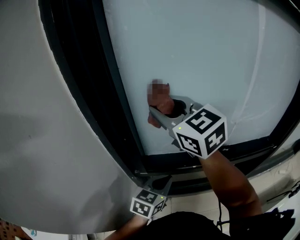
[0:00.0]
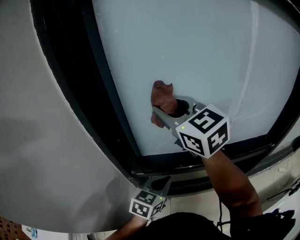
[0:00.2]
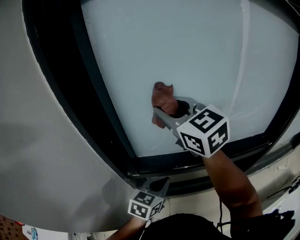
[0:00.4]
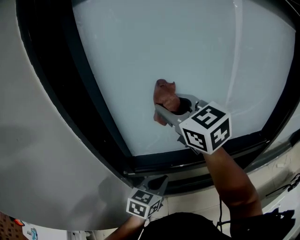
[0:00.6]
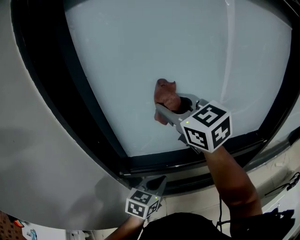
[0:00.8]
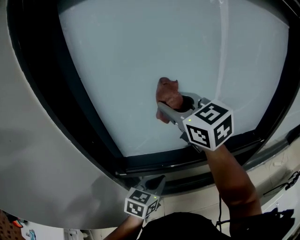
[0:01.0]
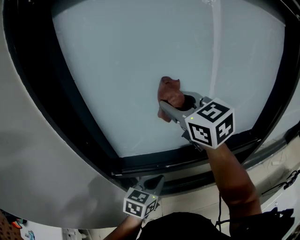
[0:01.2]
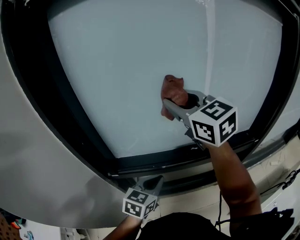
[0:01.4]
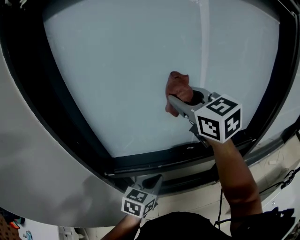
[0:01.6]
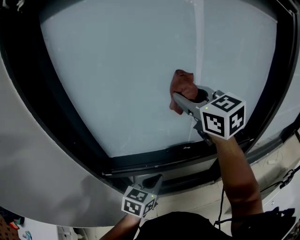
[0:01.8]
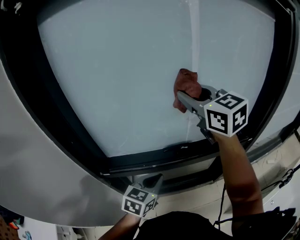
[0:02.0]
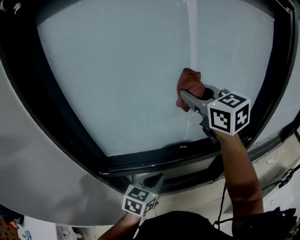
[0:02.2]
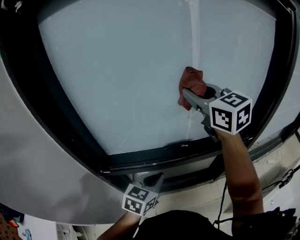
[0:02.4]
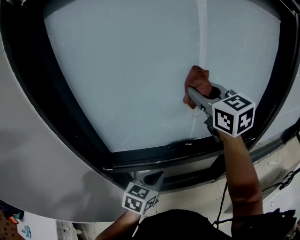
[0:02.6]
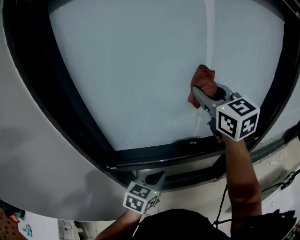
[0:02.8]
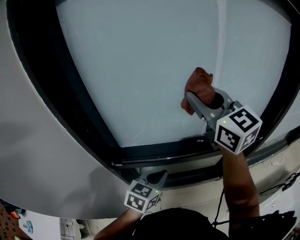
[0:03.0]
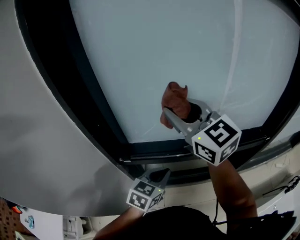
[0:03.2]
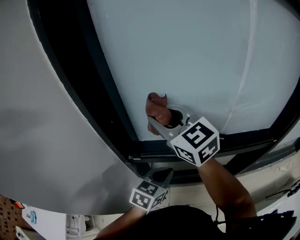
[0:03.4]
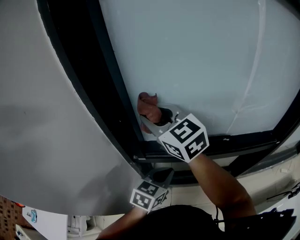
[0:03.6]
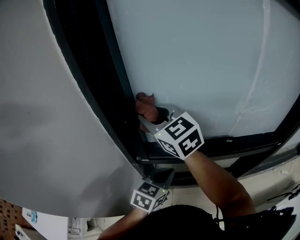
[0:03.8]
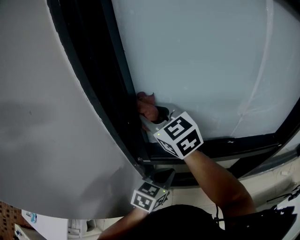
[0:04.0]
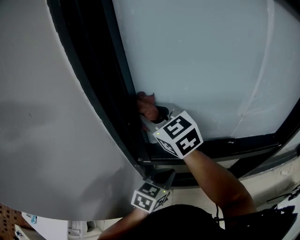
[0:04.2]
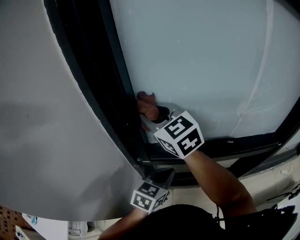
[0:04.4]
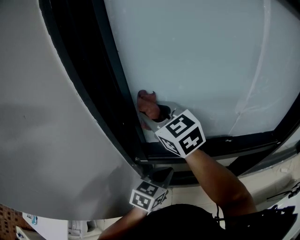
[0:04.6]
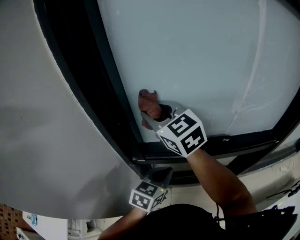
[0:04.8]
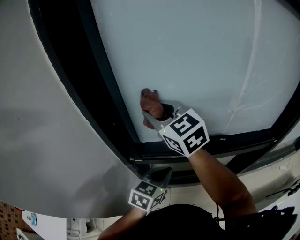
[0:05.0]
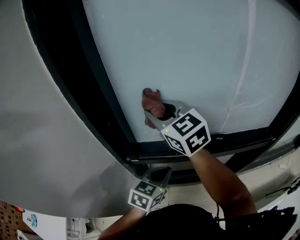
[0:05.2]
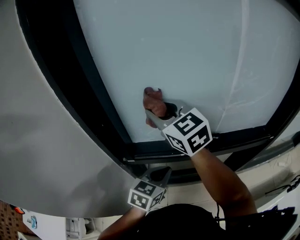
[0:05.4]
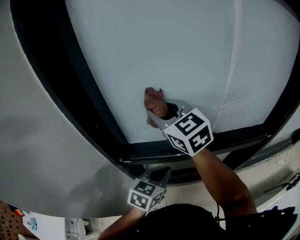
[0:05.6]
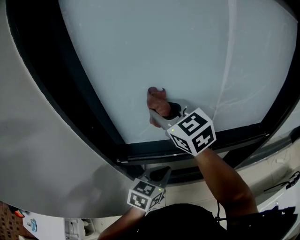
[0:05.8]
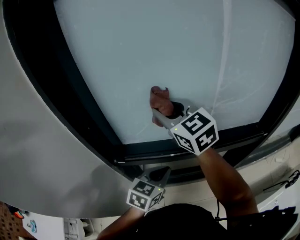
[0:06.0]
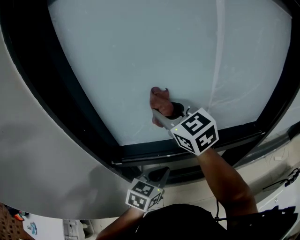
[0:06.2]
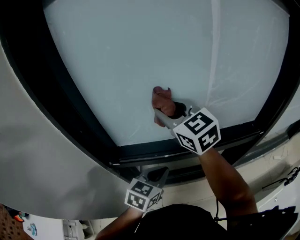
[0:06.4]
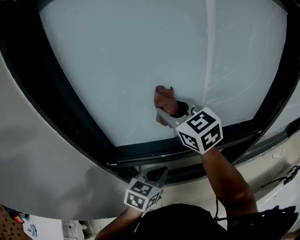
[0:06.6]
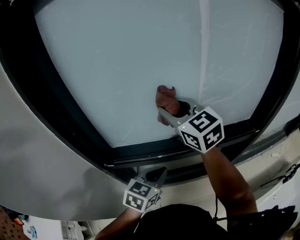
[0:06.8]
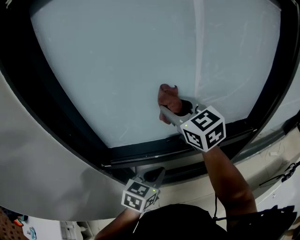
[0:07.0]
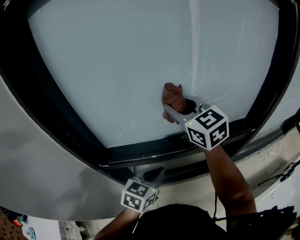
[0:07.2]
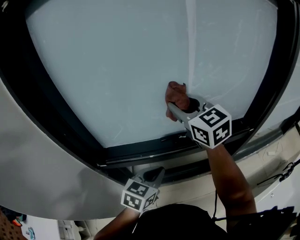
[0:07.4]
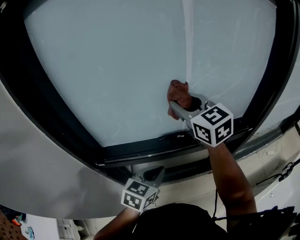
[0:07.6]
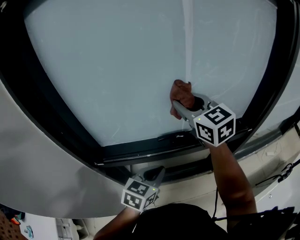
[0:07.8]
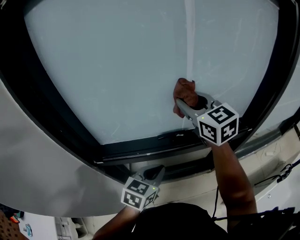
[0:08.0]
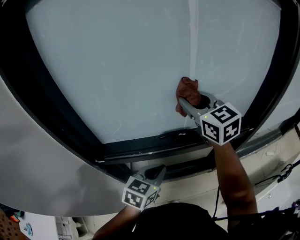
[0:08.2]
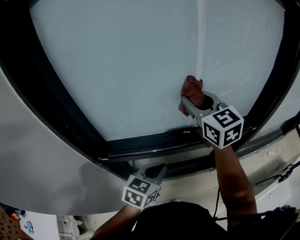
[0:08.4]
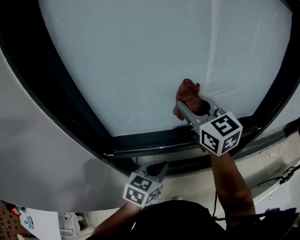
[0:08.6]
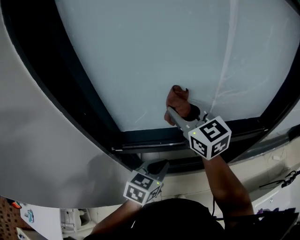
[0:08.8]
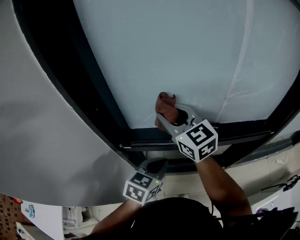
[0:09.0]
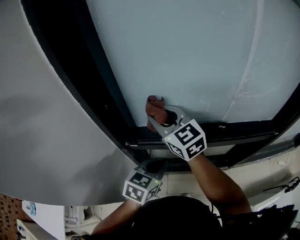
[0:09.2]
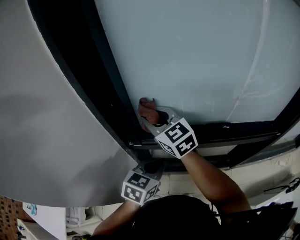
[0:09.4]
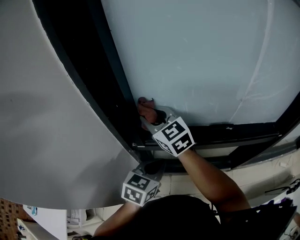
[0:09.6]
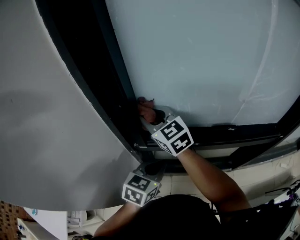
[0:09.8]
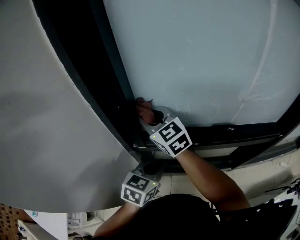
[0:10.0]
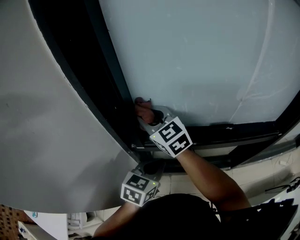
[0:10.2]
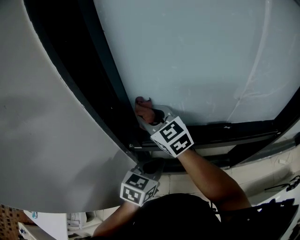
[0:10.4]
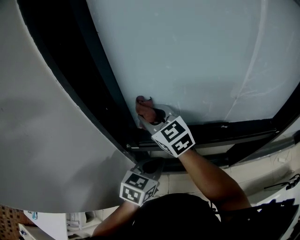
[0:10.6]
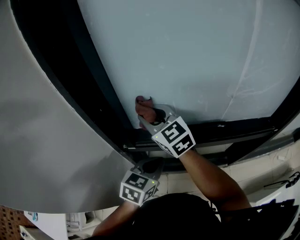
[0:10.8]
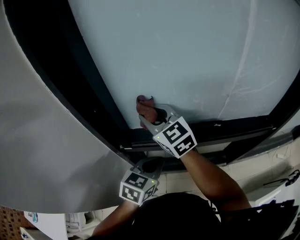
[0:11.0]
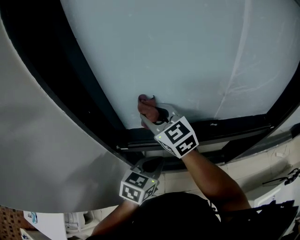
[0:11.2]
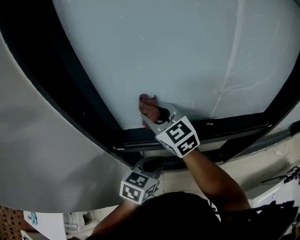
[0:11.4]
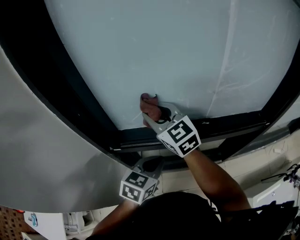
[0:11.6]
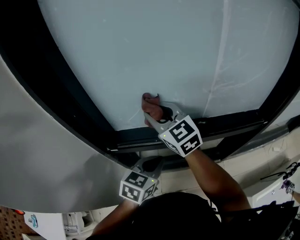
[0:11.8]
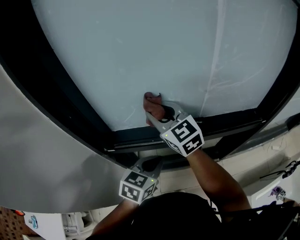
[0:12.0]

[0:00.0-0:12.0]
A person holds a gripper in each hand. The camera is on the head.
0:00.0 to 0:01.6: The right gripper shifts approximately 25 cm to the right. The left gripper moves to the right, roughly 10 cm.
0:03.0 to 0:04.4: The right gripper moves to the left, some 30 cm, and turns by some 20 degrees. Meanwhile the left gripper goes roughly 10 cm to the left.
0:04.4 to 0:06.0: The right gripper goes some 15 cm to the right. The left gripper goes roughly 10 cm to the right.
0:06.0 to 0:07.6: The right gripper goes about 15 cm to the right, while the left gripper heads to the right, covering some 5 cm.
0:07.6 to 0:09.0: The left gripper travels to the left by approximately 10 cm. Meanwhile the right gripper goes approximately 20 cm to the left.
0:09.0 to 0:10.4: The right gripper moves to the left, about 10 cm. The left gripper heads to the left, covering approximately 5 cm.
0:10.4 to 0:12.0: The two grippers go roughly 15 cm to the right.

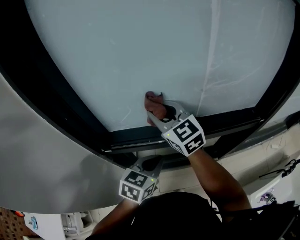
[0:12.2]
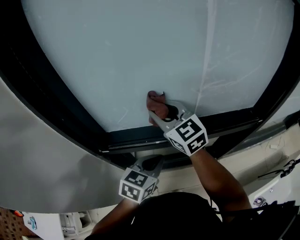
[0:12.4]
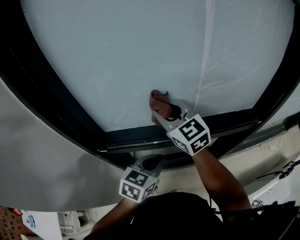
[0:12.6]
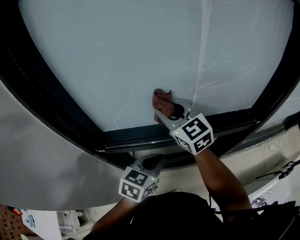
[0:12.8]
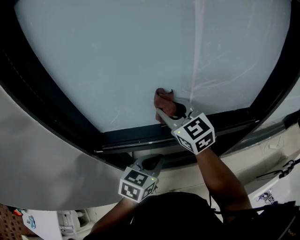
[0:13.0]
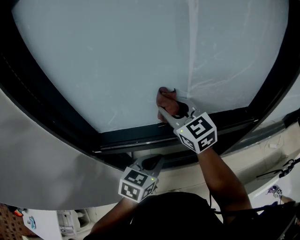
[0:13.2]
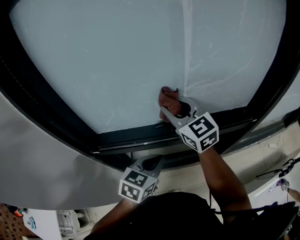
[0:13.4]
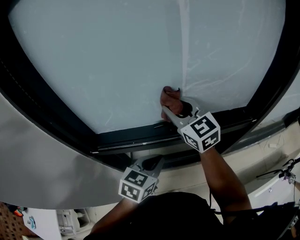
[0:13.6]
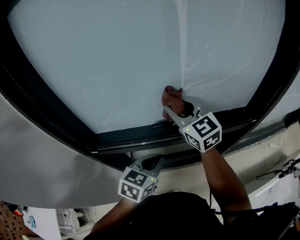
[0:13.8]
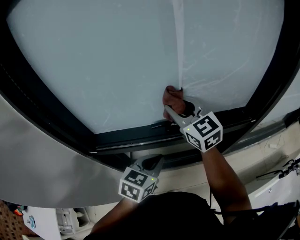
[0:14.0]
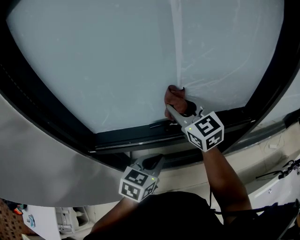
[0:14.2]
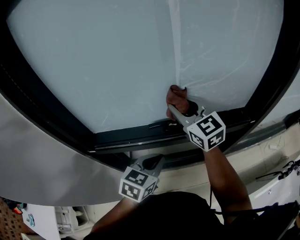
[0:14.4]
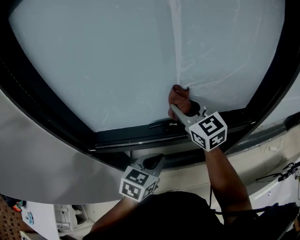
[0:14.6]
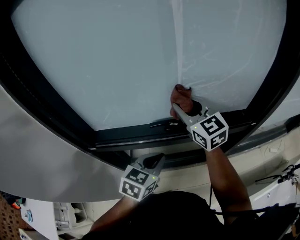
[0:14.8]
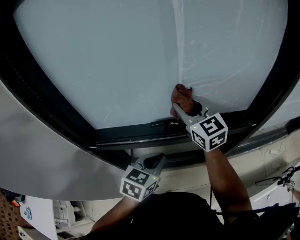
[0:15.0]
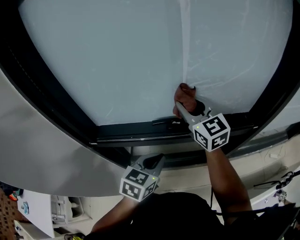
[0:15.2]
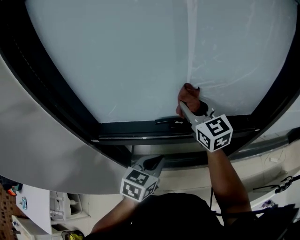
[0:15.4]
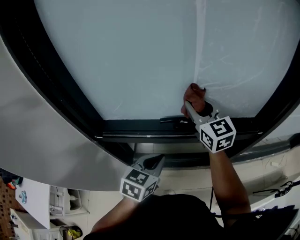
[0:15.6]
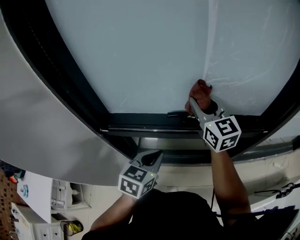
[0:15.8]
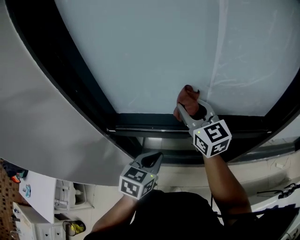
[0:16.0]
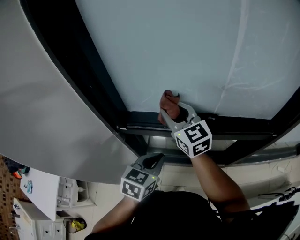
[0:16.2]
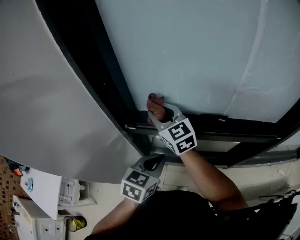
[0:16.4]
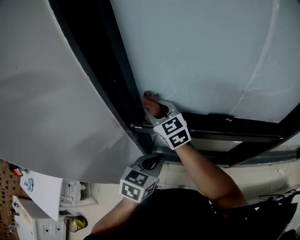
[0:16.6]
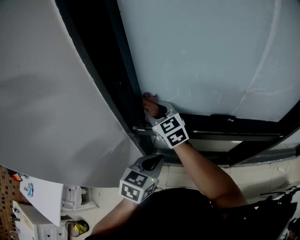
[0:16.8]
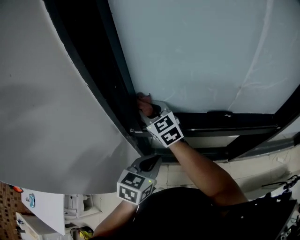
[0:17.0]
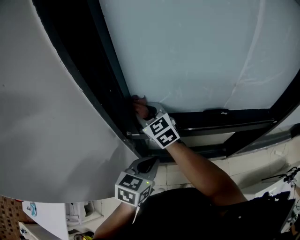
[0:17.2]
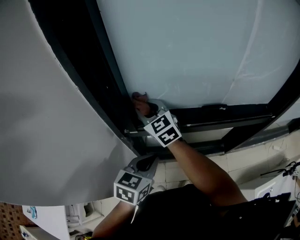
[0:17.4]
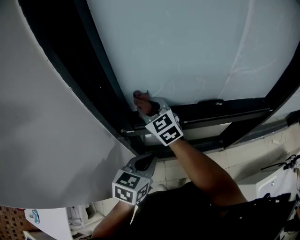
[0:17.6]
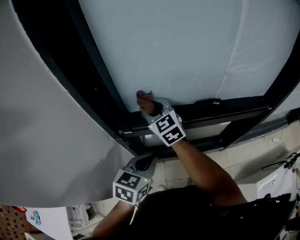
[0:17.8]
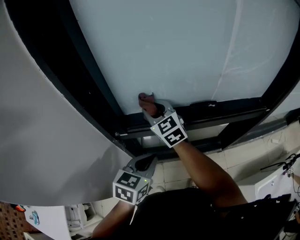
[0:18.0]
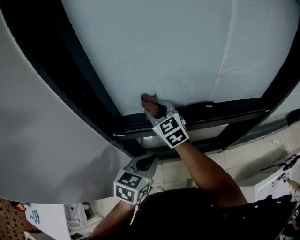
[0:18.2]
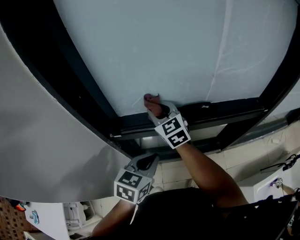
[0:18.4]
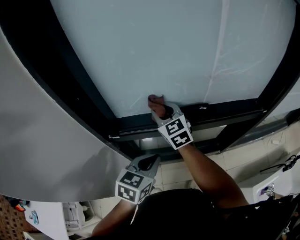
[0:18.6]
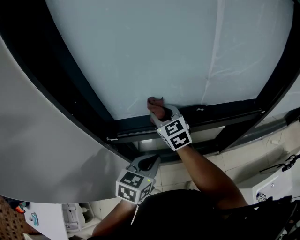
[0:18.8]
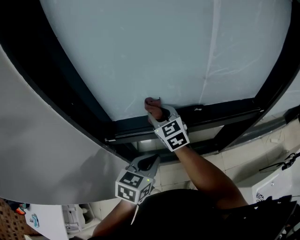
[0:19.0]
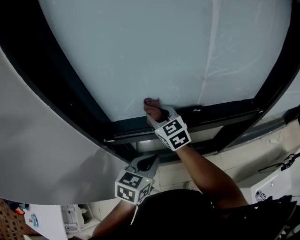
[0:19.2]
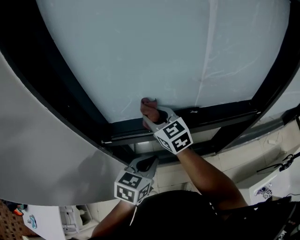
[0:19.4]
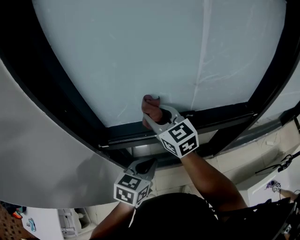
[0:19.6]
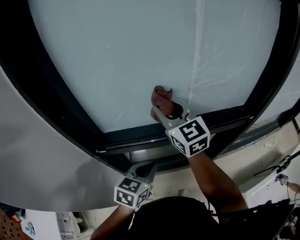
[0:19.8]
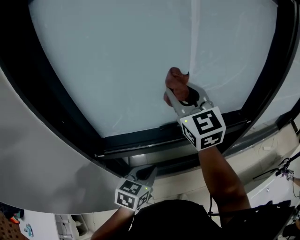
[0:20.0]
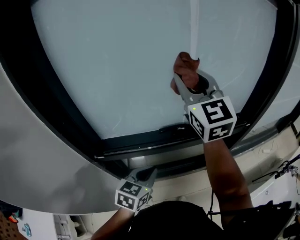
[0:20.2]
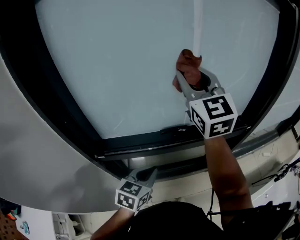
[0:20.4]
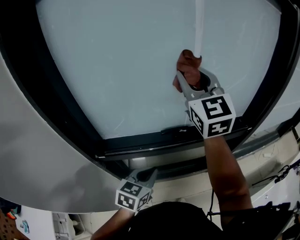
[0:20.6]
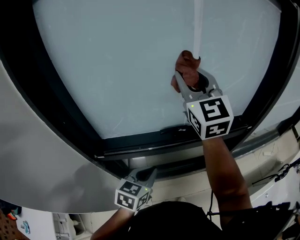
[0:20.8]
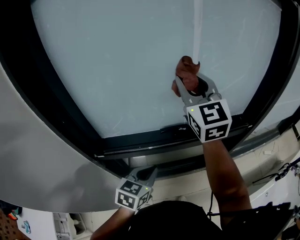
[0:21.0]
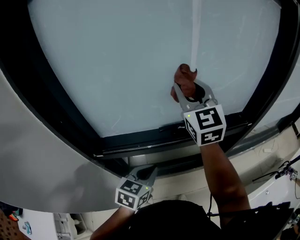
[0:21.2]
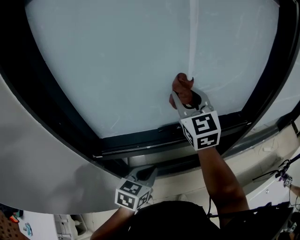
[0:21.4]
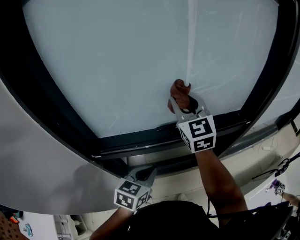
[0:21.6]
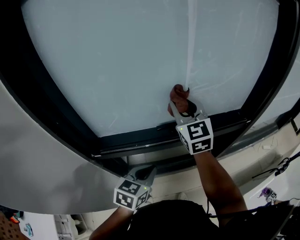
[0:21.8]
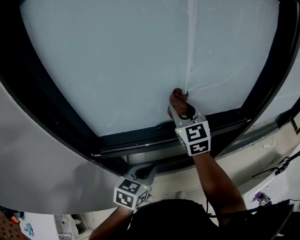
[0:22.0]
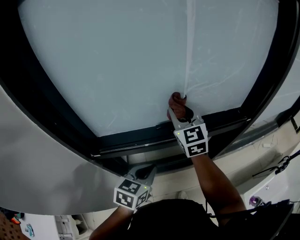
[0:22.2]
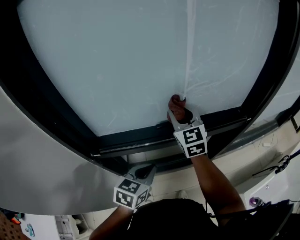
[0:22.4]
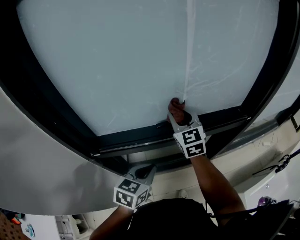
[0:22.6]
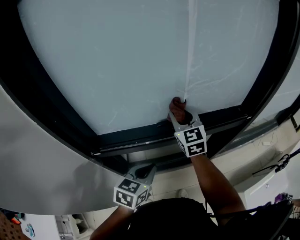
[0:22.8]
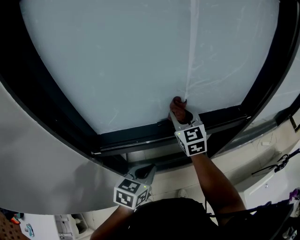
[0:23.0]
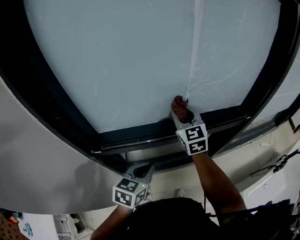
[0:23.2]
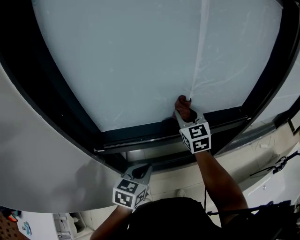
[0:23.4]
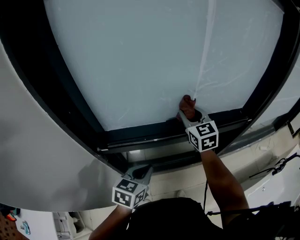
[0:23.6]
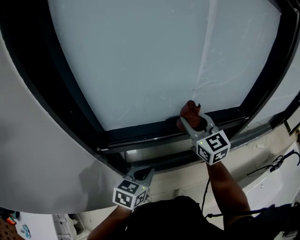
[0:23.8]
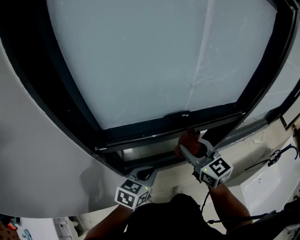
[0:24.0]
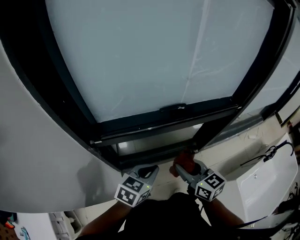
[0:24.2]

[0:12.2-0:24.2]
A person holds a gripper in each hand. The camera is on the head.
0:12.2 to 0:13.8: The left gripper goes roughly 5 cm to the right. The right gripper moves to the right, about 15 cm.
0:13.8 to 0:15.2: The grippers move only a little.
0:15.2 to 0:16.6: The left gripper goes roughly 20 cm to the left. The right gripper is displaced to the left by roughly 35 cm.
0:16.6 to 0:18.2: The right gripper is displaced to the right by some 10 cm.
0:18.2 to 0:19.8: The left gripper goes about 10 cm to the right, while the right gripper goes about 20 cm to the right and upward.
0:19.8 to 0:21.2: The right gripper travels upward and to the right by approximately 10 cm.
0:21.2 to 0:22.6: The right gripper heads downward, covering some 15 cm.
0:22.6 to 0:24.2: The left gripper goes approximately 5 cm backward, while the right gripper moves backward, some 25 cm, and changes its angle by roughly 30 degrees.
